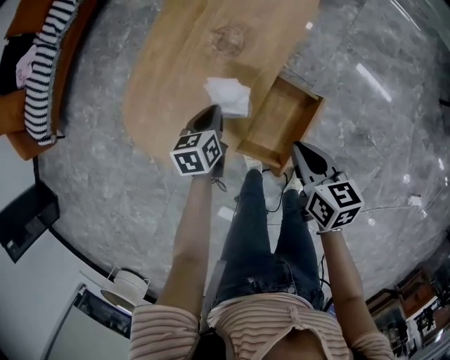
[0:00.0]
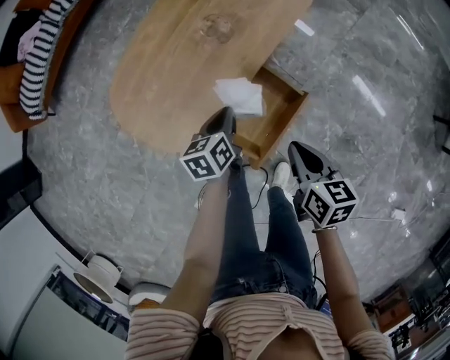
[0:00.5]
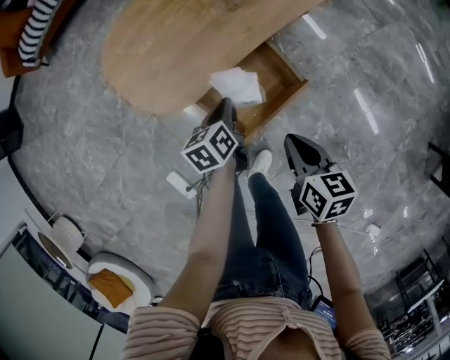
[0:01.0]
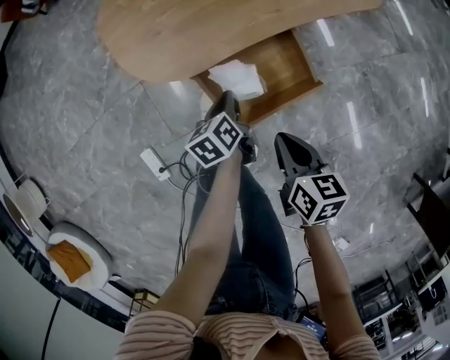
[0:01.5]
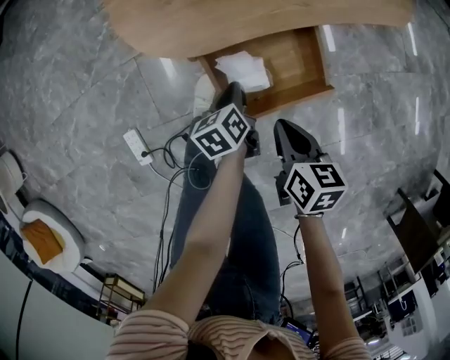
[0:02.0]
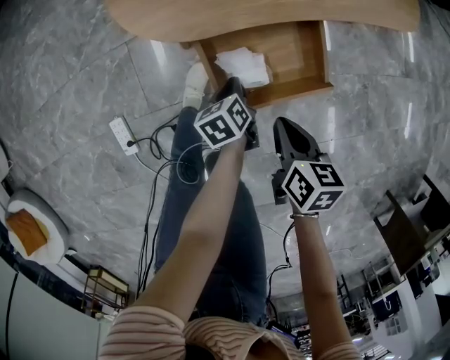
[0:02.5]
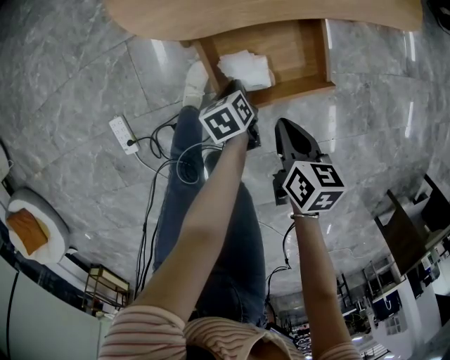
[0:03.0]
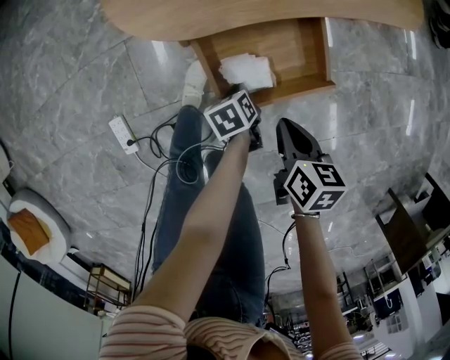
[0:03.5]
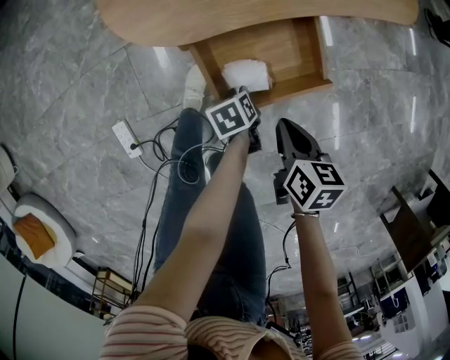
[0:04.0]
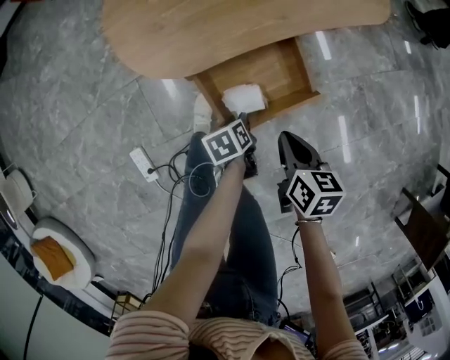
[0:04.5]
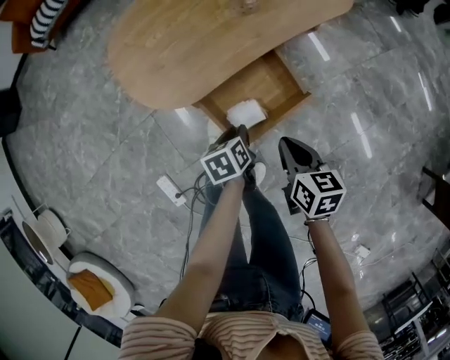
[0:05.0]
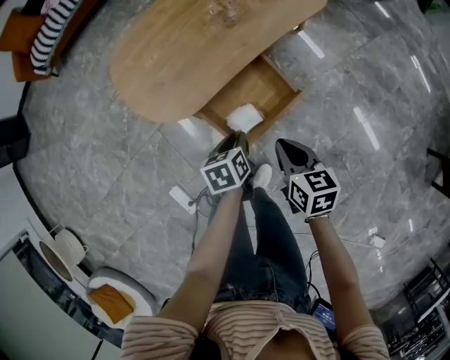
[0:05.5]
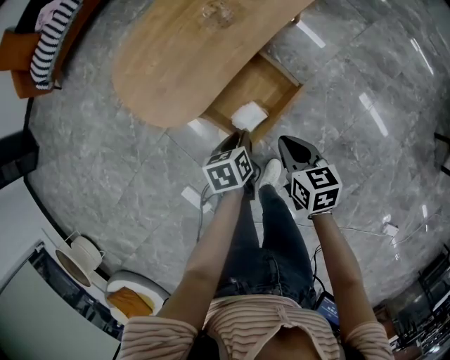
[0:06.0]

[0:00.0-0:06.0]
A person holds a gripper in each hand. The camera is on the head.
0:00.0 to 0:02.0: The left gripper ends up approximately 30 cm from where it was, and twists about 50 degrees counterclockwise, seen from behind; the right gripper goes about 15 cm downward, and changes its angle by about 40 degrees.
0:02.0 to 0:04.0: The left gripper heads downward and backward, covering about 10 cm, and rotates about 20 degrees.
0:04.0 to 0:06.0: The right gripper shifts some 15 cm upward. Meanwhile the left gripper travels upward by some 25 cm, and turns by roughly 40 degrees.

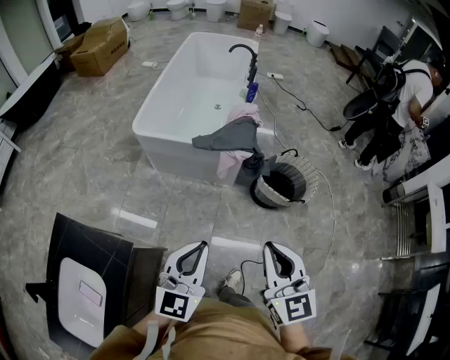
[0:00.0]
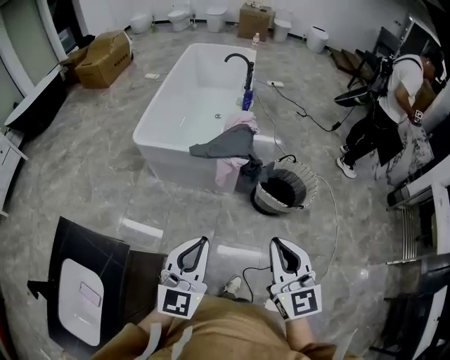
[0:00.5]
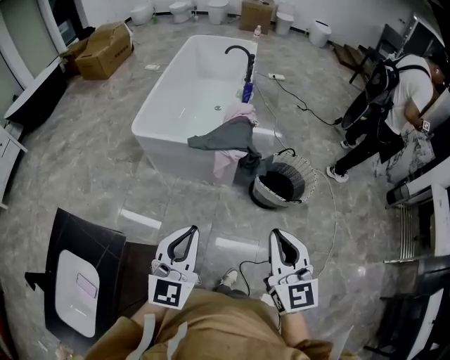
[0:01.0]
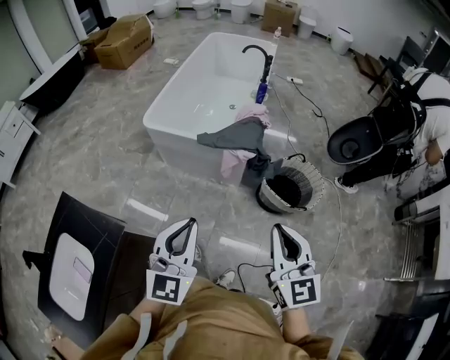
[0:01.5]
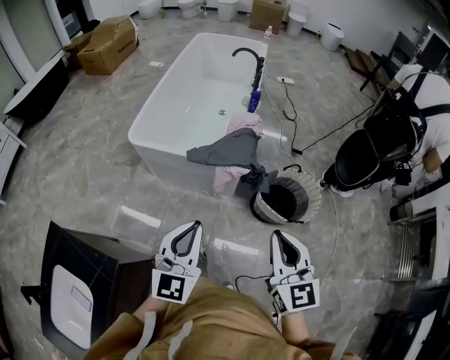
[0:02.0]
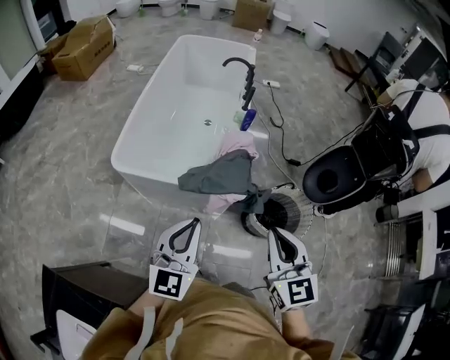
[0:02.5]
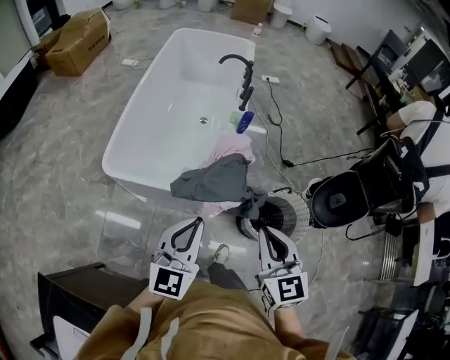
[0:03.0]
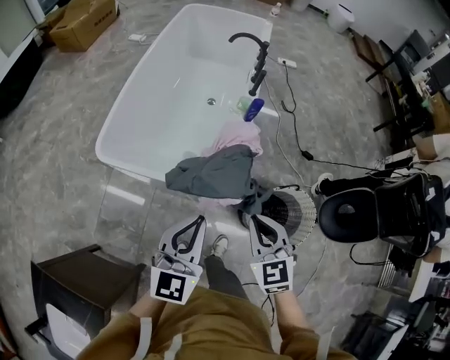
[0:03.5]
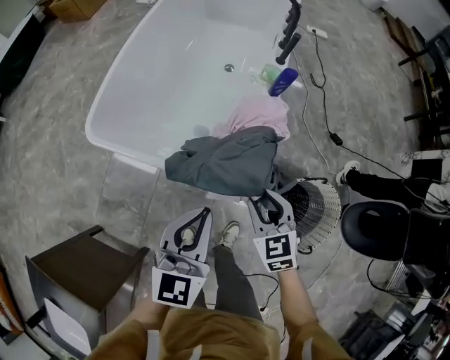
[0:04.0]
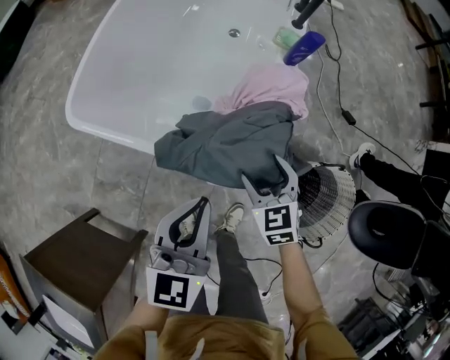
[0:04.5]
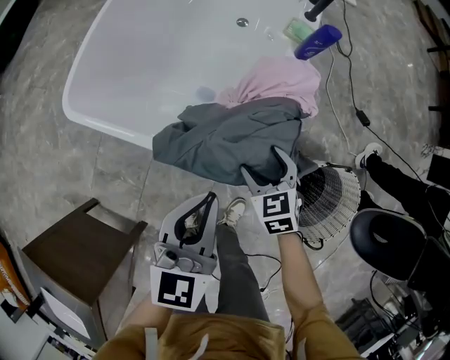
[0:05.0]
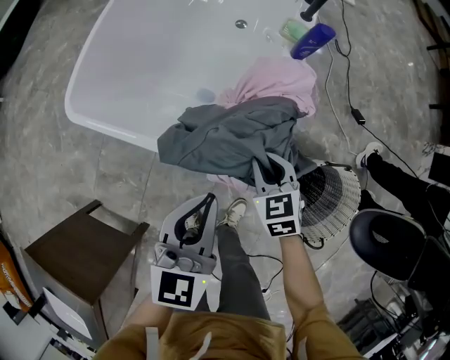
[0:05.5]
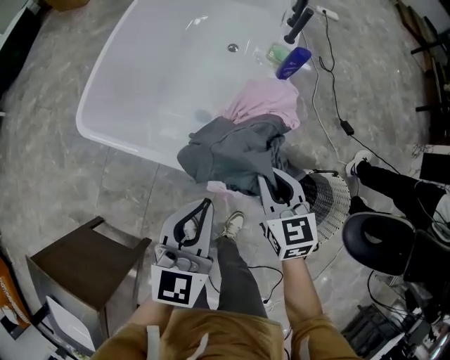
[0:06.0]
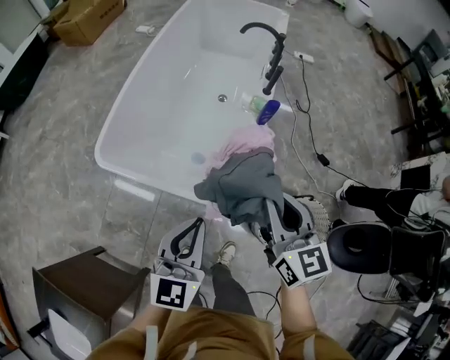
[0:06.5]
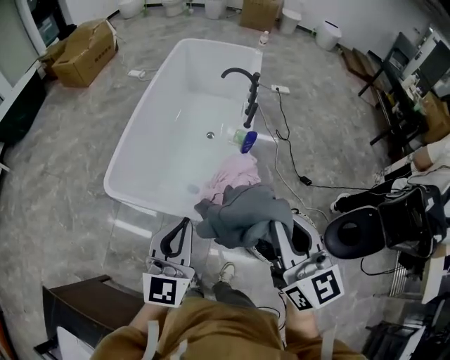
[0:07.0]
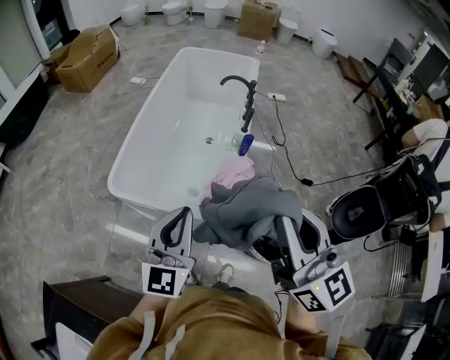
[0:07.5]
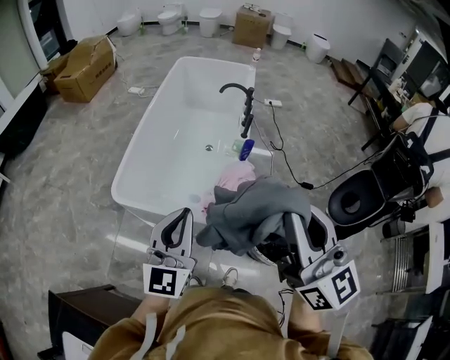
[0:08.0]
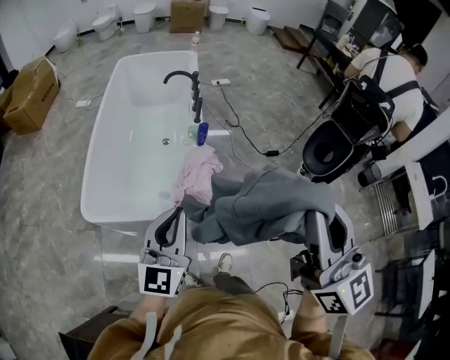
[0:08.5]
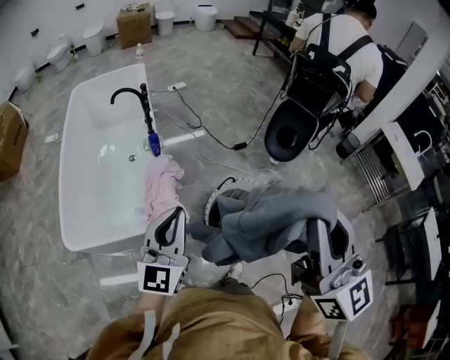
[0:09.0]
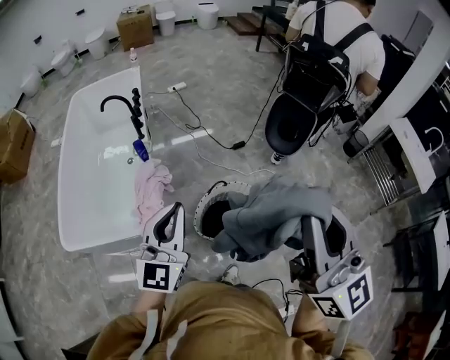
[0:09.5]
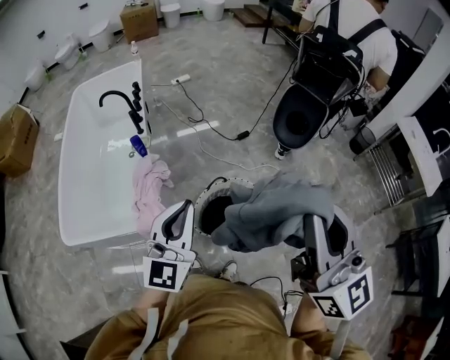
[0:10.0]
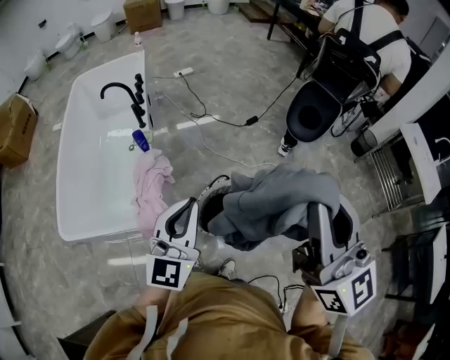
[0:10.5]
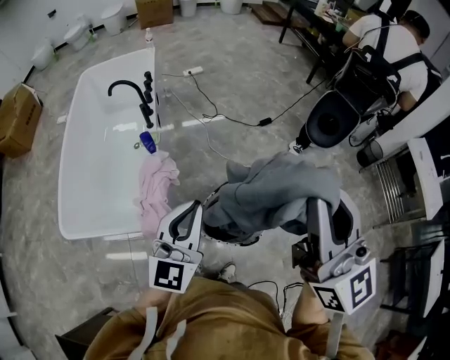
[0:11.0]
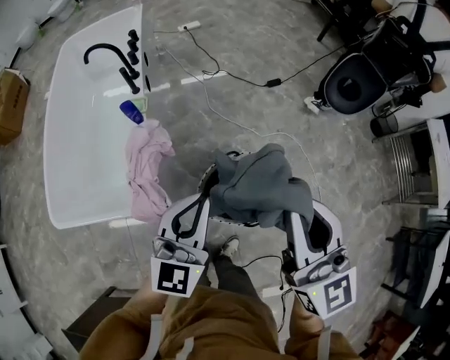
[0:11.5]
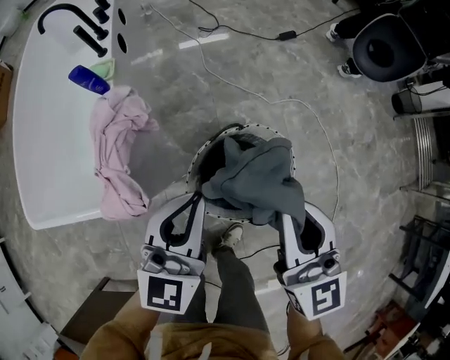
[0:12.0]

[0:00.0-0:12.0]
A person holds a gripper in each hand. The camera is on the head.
0:00.0 to 0:02.0: The left gripper heads forward, covering roughly 15 cm; the right gripper goes some 20 cm forward and to the right.
0:02.0 to 0:04.0: The two grippers go some 50 cm forward and downward. The right gripper rotates roughly 30 degrees, and opens.
0:04.0 to 0:06.0: The right gripper goes about 5 cm forward, moves about 15 cm downward and comes back, and opens, then closes once more. The left gripper moves downward, roughly 5 cm.
0:06.0 to 0:08.0: The right gripper heads upward, covering about 50 cm, and tips its fingers upward by roughly 40 degrees. The left gripper shifts approximately 30 cm upward, and turns by some 30 degrees.
0:08.0 to 0:10.0: The right gripper moves approximately 40 cm, and rotates about 30 degrees. The left gripper shifts by approximately 40 cm, and turns by about 30 degrees.
0:10.0 to 0:12.0: The grippers both shift downward and forward by approximately 35 cm. The right gripper rotates approximately 20 degrees.

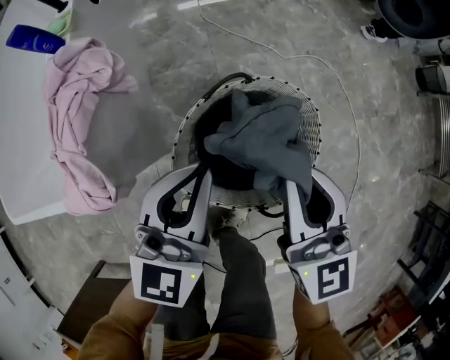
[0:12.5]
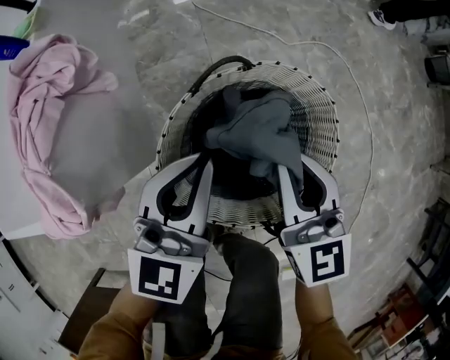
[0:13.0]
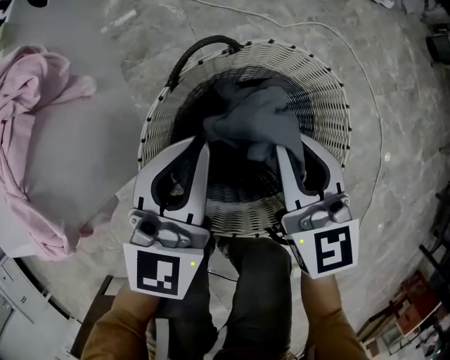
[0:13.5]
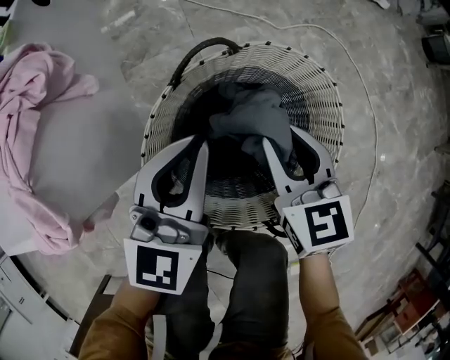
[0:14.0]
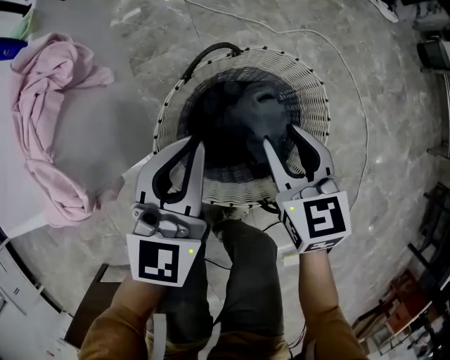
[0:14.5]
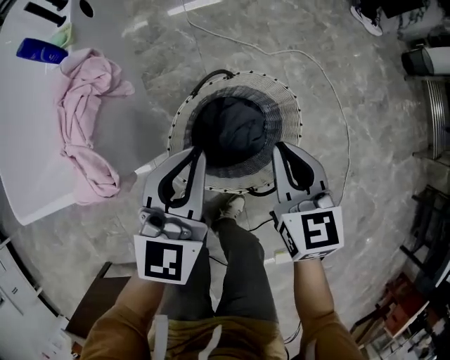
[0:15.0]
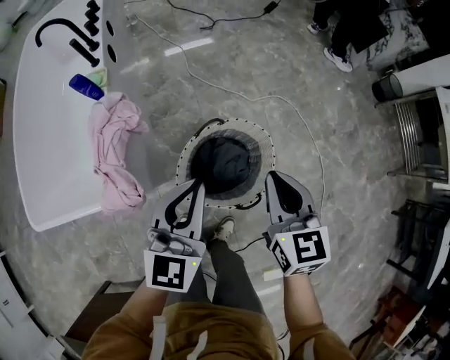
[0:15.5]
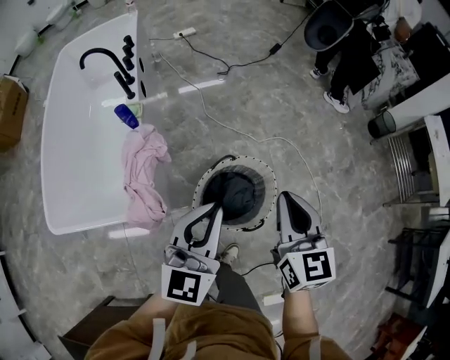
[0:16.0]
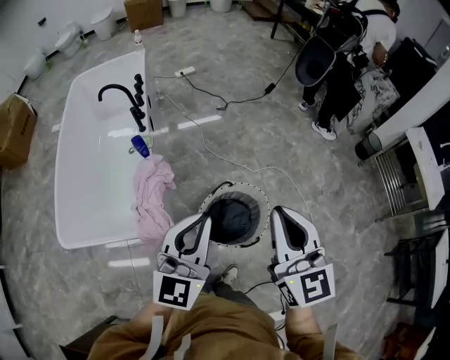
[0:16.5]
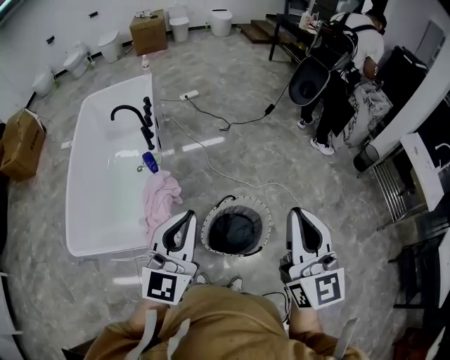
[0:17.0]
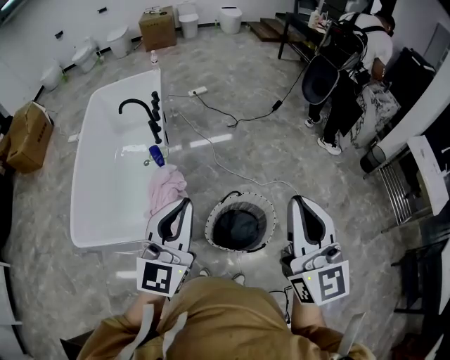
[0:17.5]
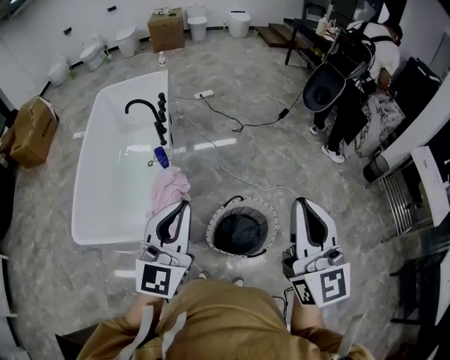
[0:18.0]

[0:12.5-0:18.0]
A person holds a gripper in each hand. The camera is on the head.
0:12.5 to 0:14.5: The left gripper is displaced downward by some 10 cm; the right gripper heads downward, covering roughly 20 cm, and changes its angle by roughly 20 degrees.
0:14.5 to 0:16.0: The grippers both shift upward by roughly 40 cm. The right gripper rotates some 20 degrees, and closes its fingers.
0:16.0 to 0:18.0: The right gripper moves upward, about 25 cm, and swivels some 30 degrees; the left gripper shifts approximately 20 cm upward and to the left.

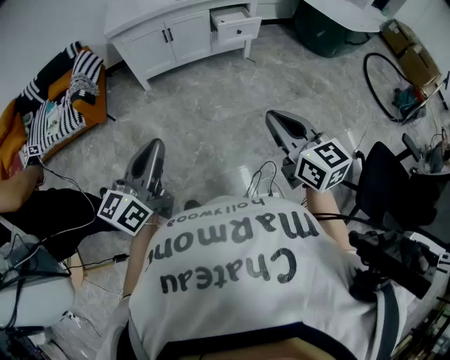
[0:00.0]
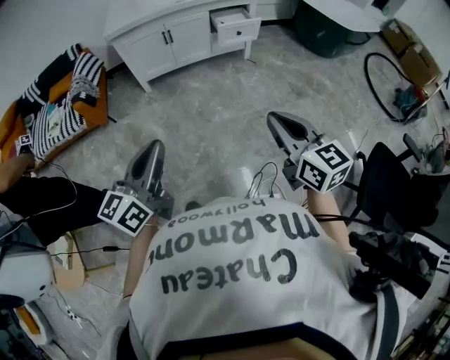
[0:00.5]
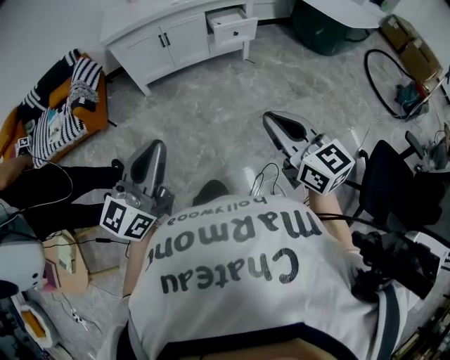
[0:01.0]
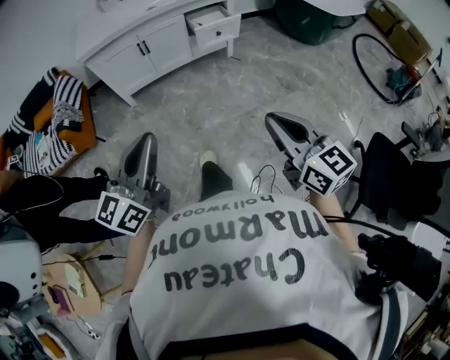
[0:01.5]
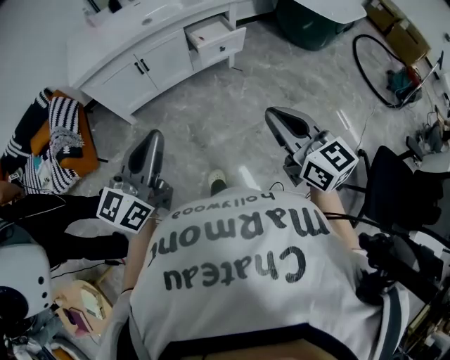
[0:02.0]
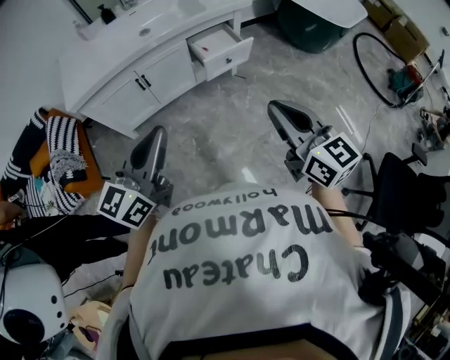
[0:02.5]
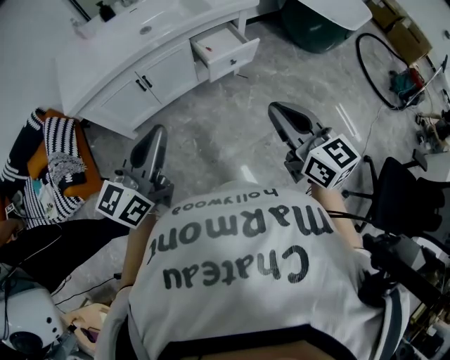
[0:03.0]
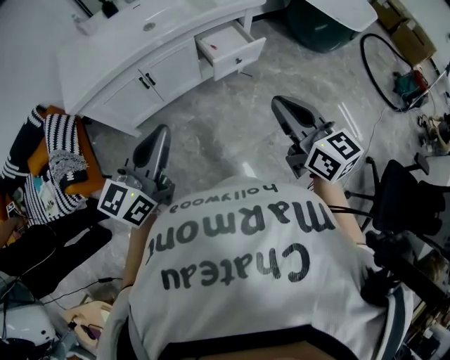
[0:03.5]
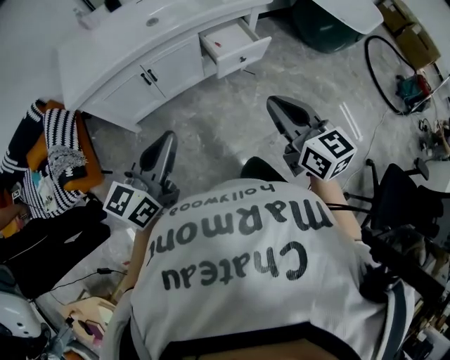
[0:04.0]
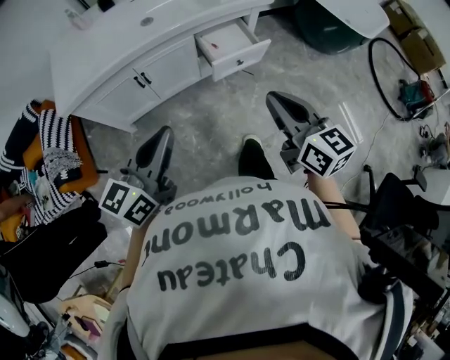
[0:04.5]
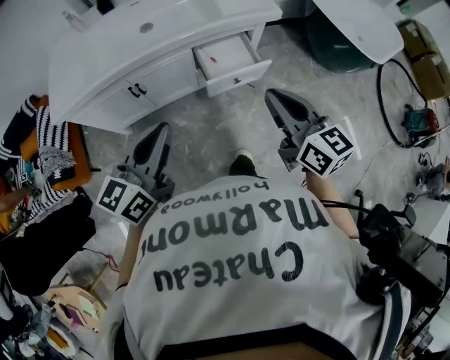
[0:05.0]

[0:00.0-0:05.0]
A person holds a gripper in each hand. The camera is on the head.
0:00.0 to 0:02.5: Both grippers move forward, about 40 cm.
0:02.5 to 0:05.0: Both grippers move forward, approximately 25 cm.
